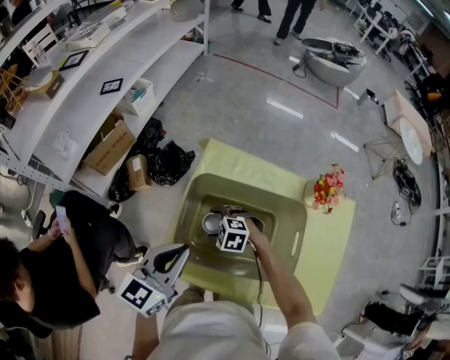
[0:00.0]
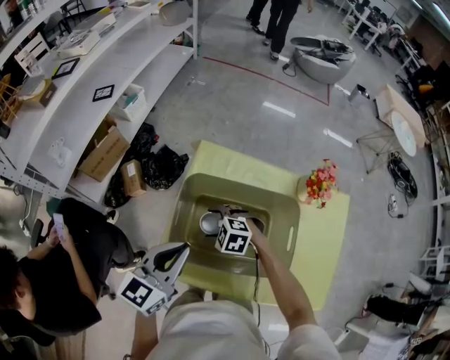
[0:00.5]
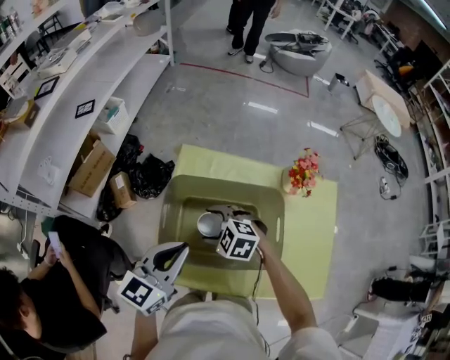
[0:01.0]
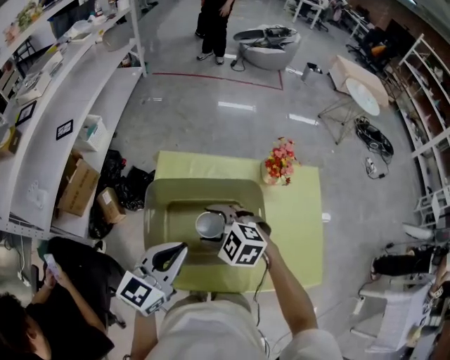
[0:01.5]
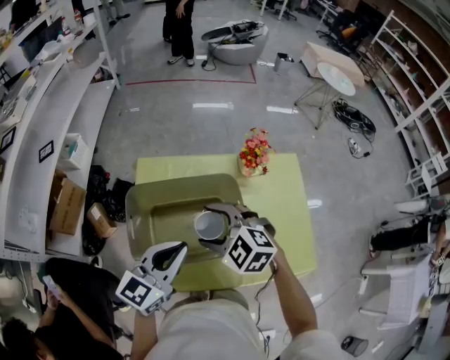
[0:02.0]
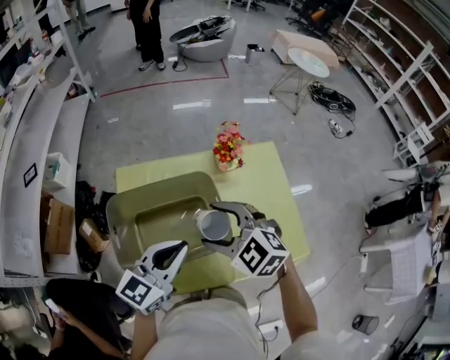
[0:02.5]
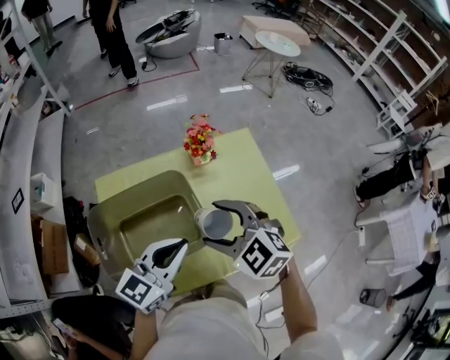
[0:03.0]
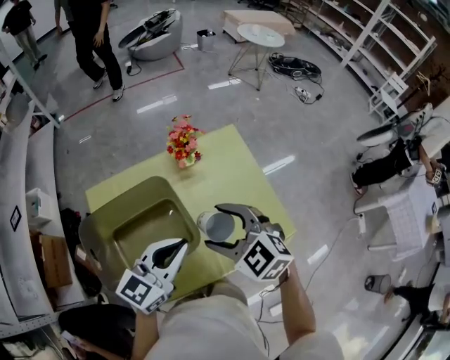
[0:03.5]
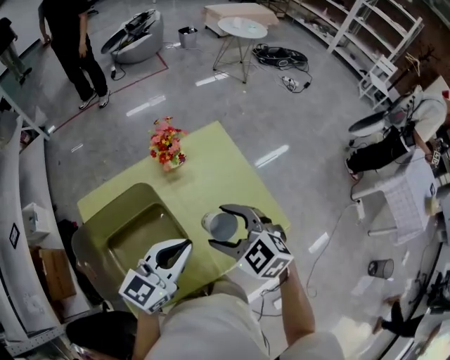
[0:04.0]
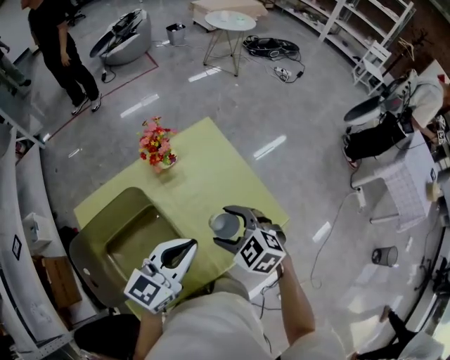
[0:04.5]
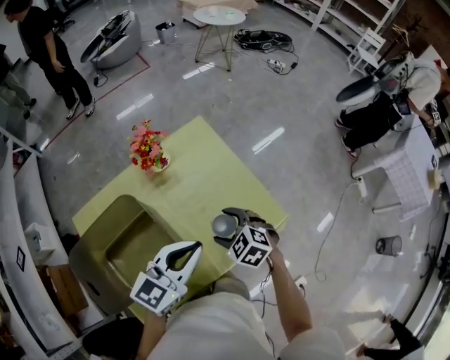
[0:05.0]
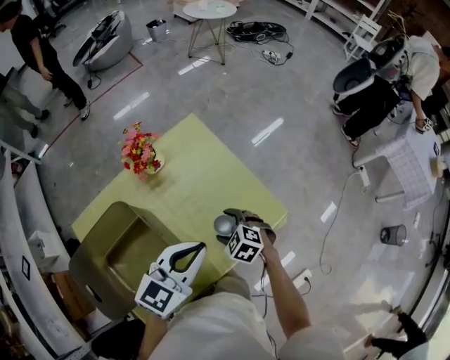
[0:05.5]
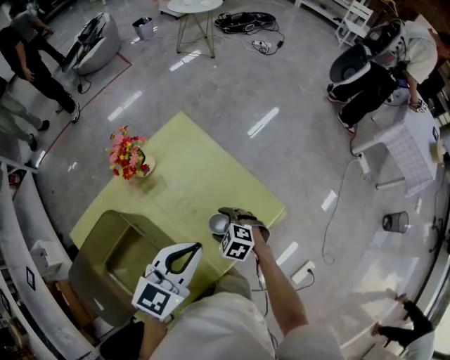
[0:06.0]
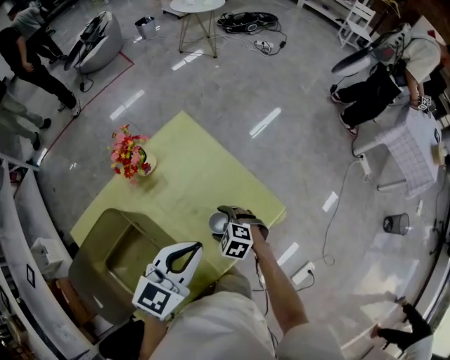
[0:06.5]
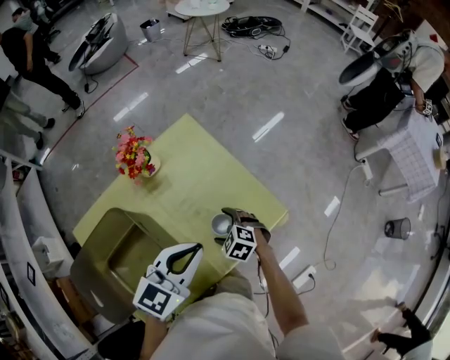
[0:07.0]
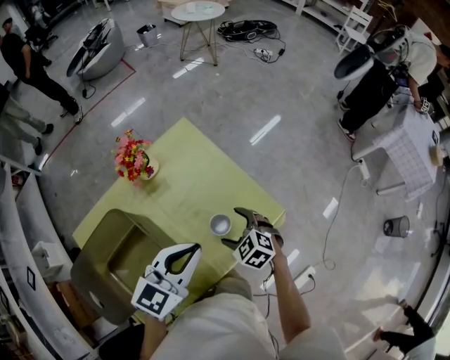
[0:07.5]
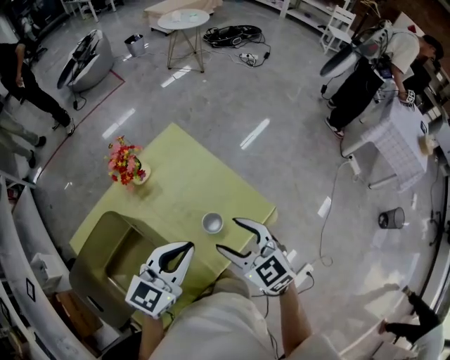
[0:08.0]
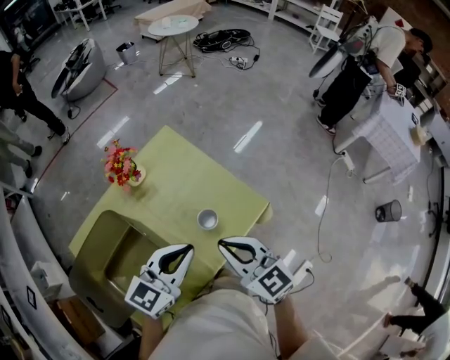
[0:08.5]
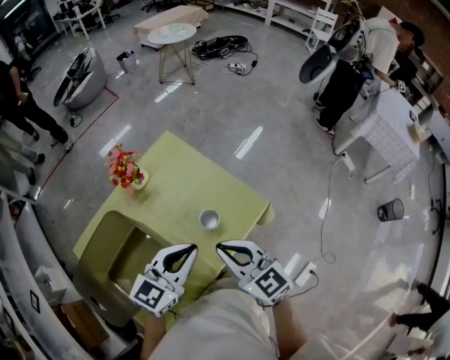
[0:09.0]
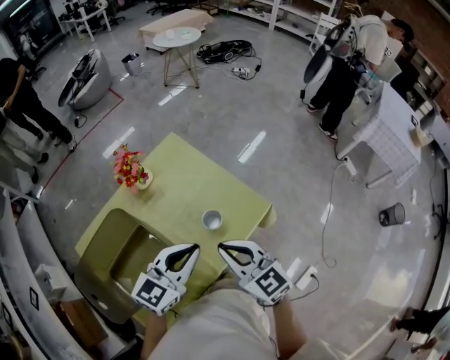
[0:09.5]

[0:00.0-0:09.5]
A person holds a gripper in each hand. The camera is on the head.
0:00.0 to 0:02.0: The left gripper changes place by approximately 15 cm, and changes its angle by about 30 degrees. Meanwhile the right gripper is displaced upward by some 25 cm, and turns by roughly 40 degrees.
0:02.0 to 0:04.0: The left gripper changes place by about 20 cm, and changes its angle by some 30 degrees; the right gripper moves about 25 cm, and swivels approximately 40 degrees.
0:04.0 to 0:05.5: The left gripper moves to the right, some 10 cm; the right gripper shifts roughly 20 cm downward, and turns by about 20 degrees.
0:05.5 to 0:07.5: The grippers move only a little.
0:07.5 to 0:09.5: The left gripper is displaced backward by approximately 5 cm, while the right gripper moves upward and backward, approximately 20 cm, tips its fingers upward by some 30 degrees, and closes up.

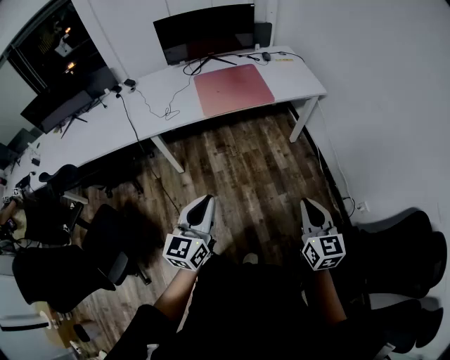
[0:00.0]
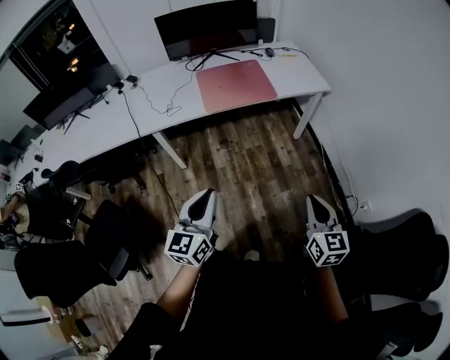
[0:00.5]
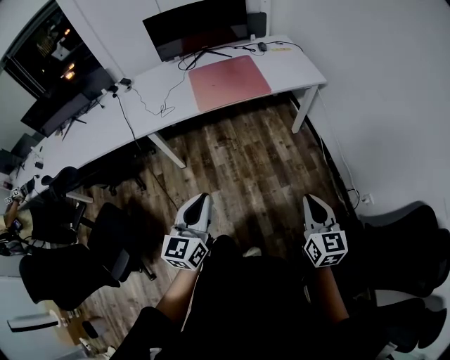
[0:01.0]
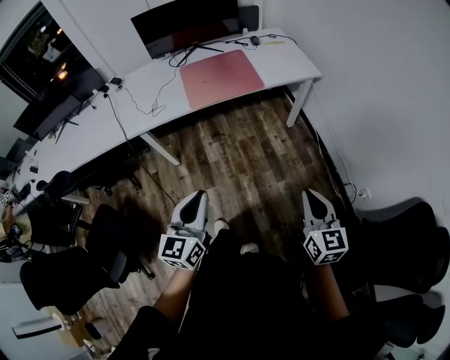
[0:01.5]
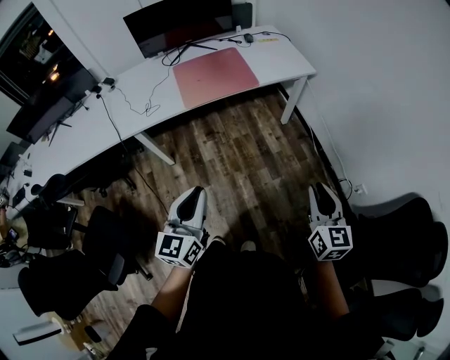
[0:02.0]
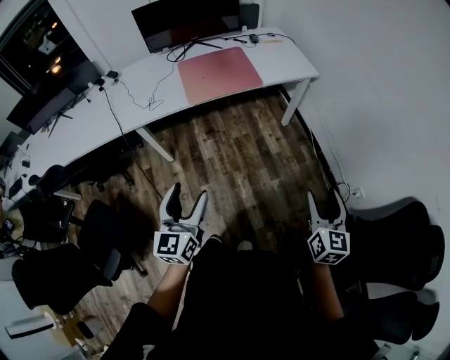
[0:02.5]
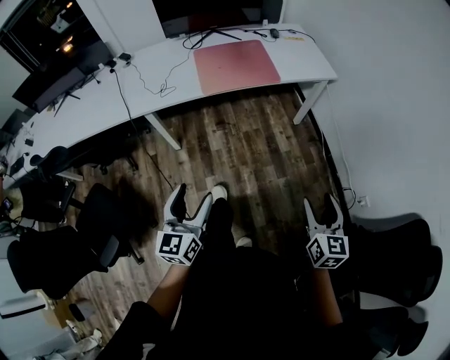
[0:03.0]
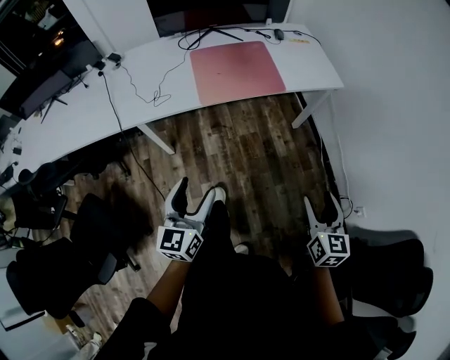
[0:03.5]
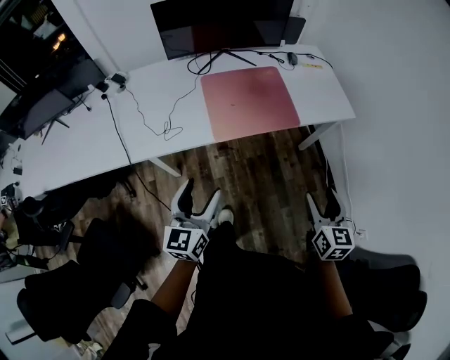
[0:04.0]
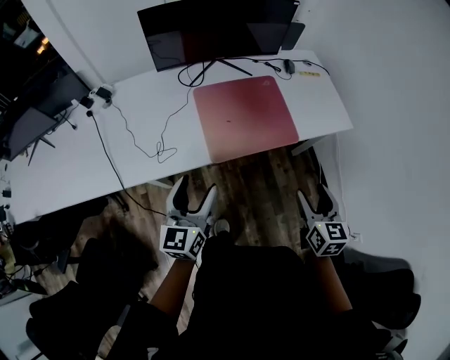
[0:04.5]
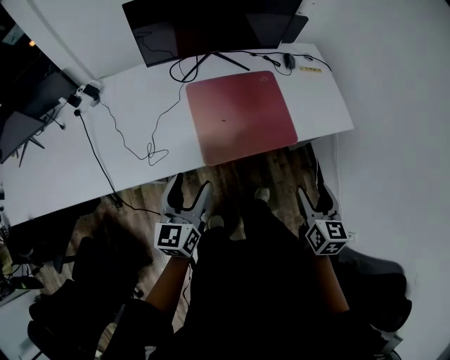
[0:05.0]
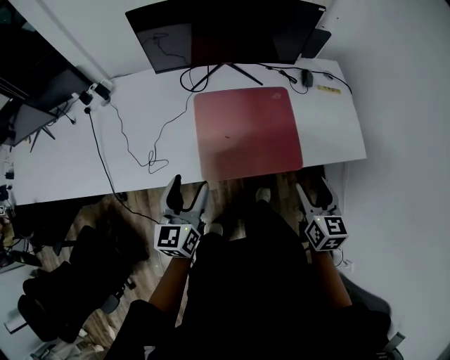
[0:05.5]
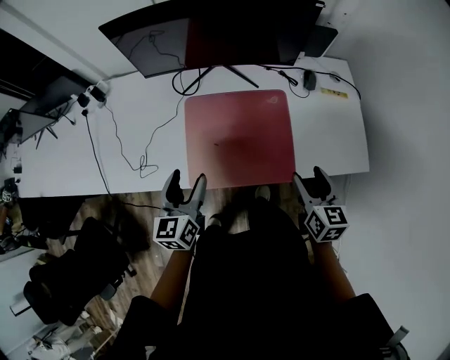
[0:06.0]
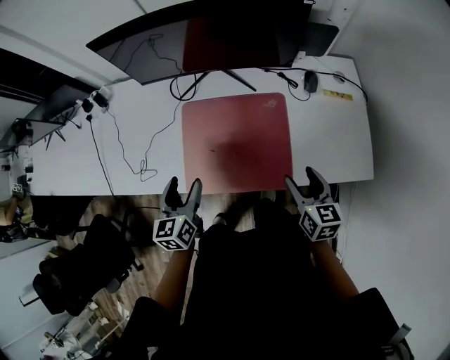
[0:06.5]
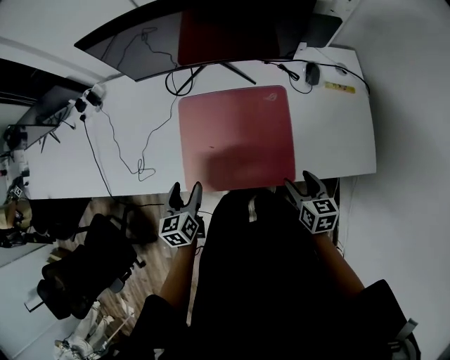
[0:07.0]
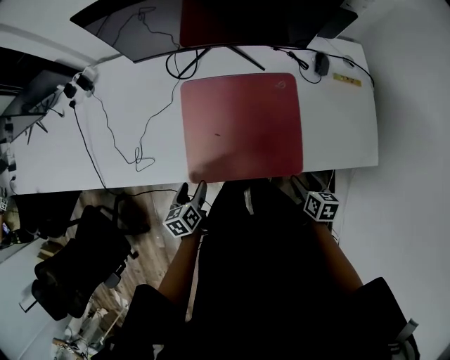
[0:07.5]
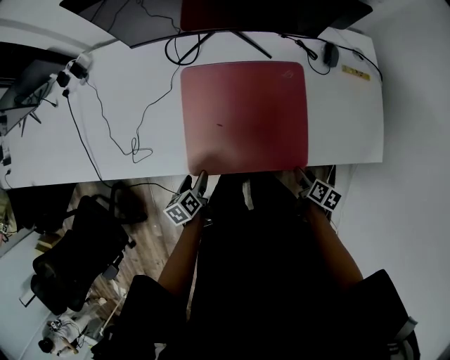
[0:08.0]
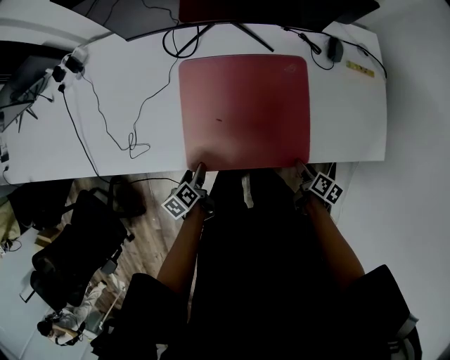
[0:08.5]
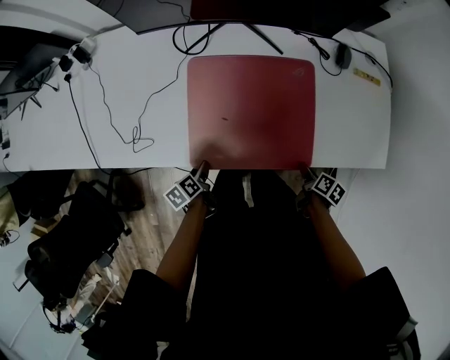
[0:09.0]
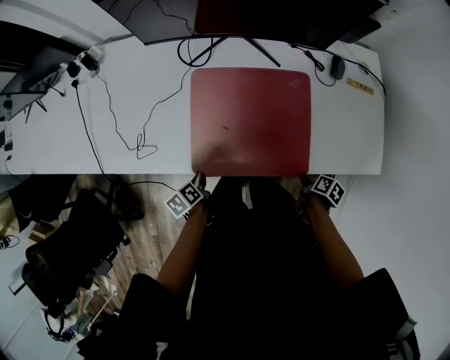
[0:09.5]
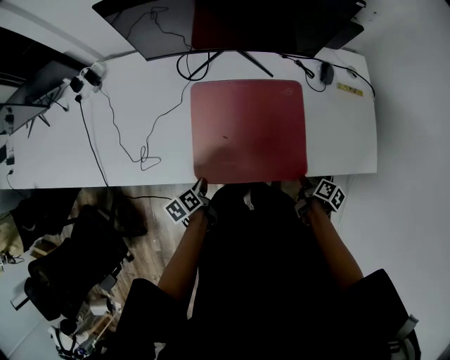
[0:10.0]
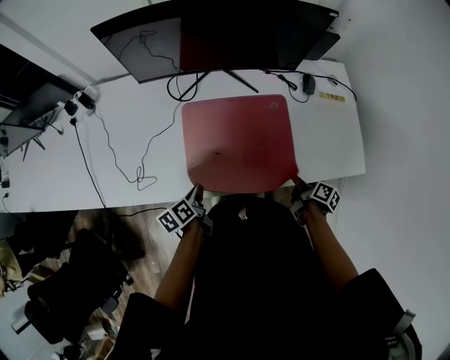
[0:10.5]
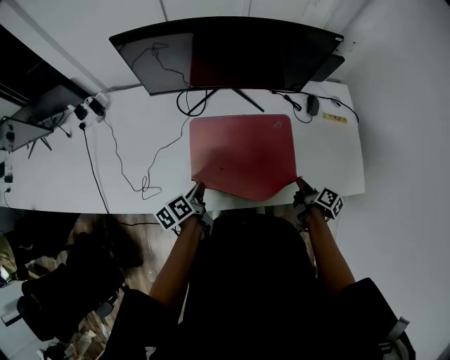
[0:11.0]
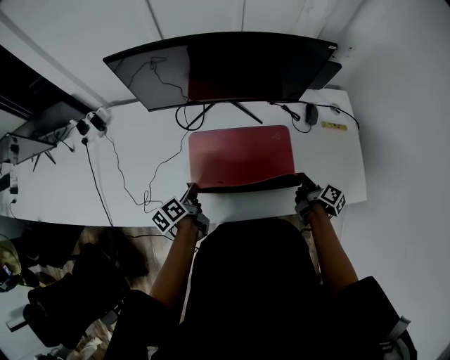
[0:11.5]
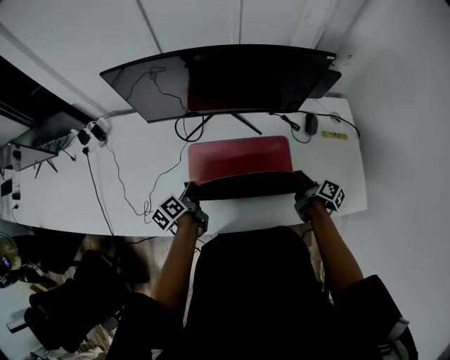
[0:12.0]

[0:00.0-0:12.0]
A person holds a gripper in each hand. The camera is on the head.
0:00.0 to 0:02.0: The right gripper is displaced to the right by roughly 10 cm. Meanwhile the left gripper shifts by some 5 cm.
0:02.0 to 0:04.0: Both grippers travel together forward and to the left, about 35 cm. The right gripper opens its fingers, while the left gripper opens.
0:04.0 to 0:06.0: Both grippers travel together forward, roughly 35 cm. The left gripper turns by roughly 20 degrees.
0:06.0 to 0:08.0: Both grippers travel together downward, about 25 cm. The right gripper turns by roughly 50 degrees. The left gripper tips its fingers downward by some 30 degrees.
0:08.0 to 0:10.0: The right gripper closes its fingers. Meanwhile the left gripper closes.
0:10.0 to 0:12.0: The grippers both shift forward and upward by about 20 cm. The right gripper changes its angle by roughly 20 degrees.

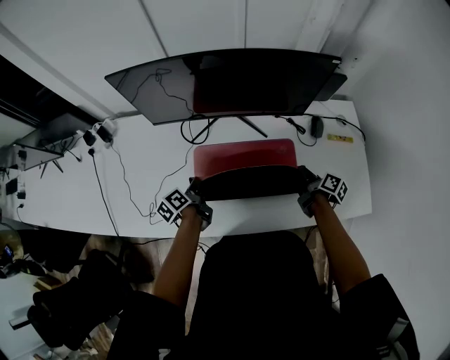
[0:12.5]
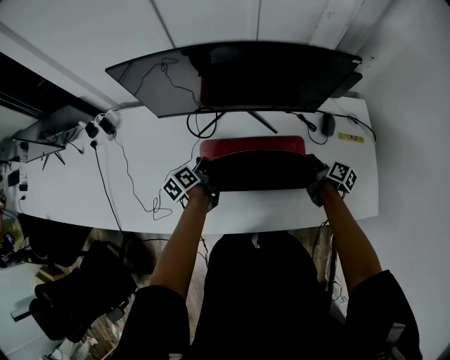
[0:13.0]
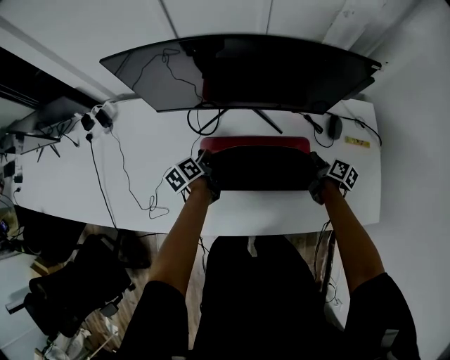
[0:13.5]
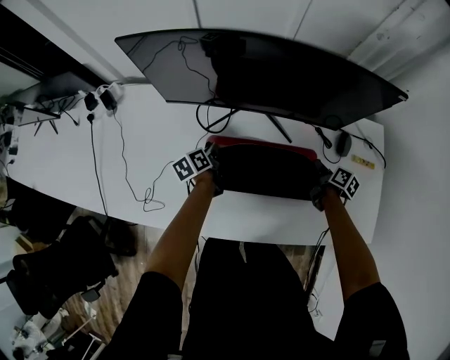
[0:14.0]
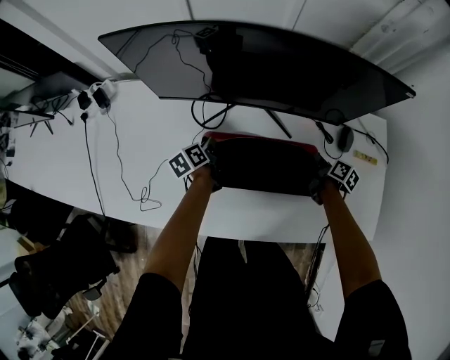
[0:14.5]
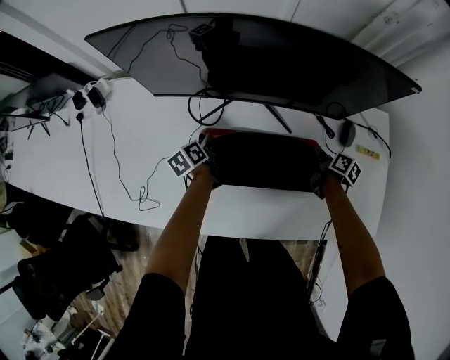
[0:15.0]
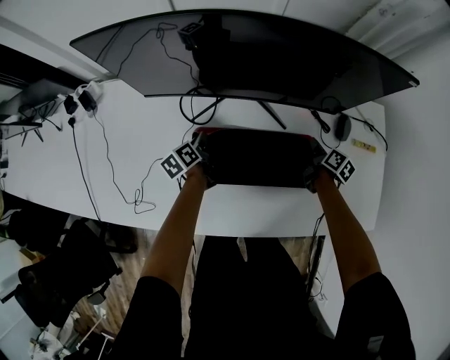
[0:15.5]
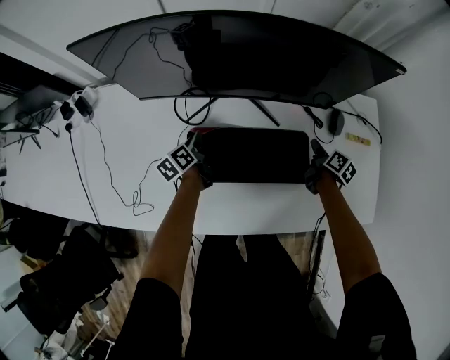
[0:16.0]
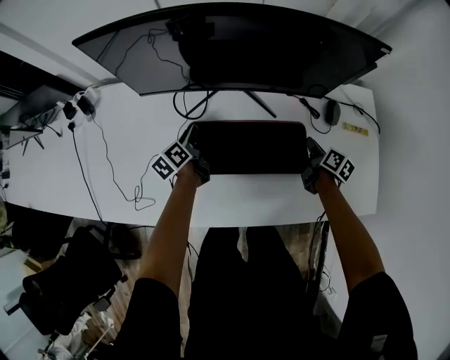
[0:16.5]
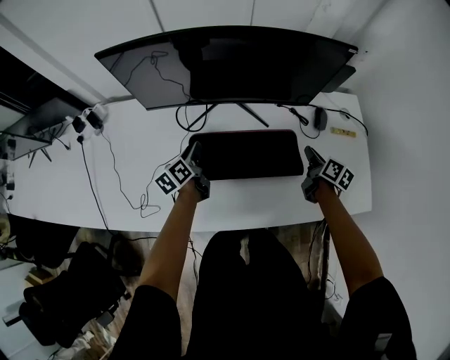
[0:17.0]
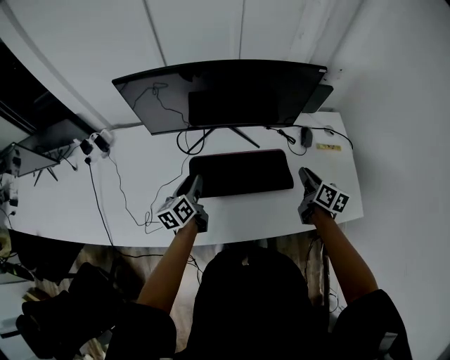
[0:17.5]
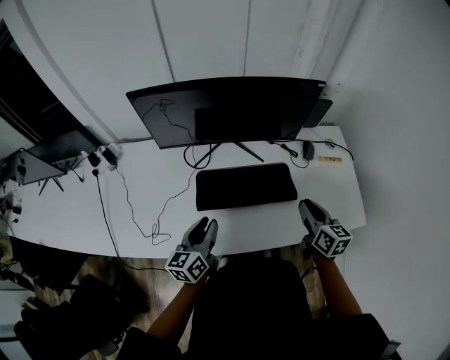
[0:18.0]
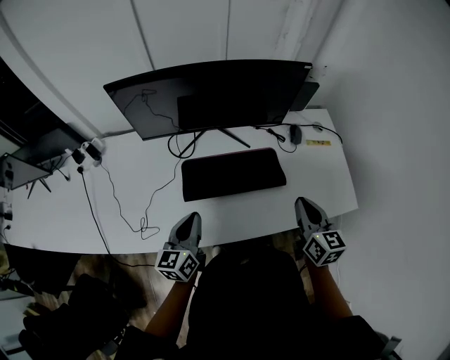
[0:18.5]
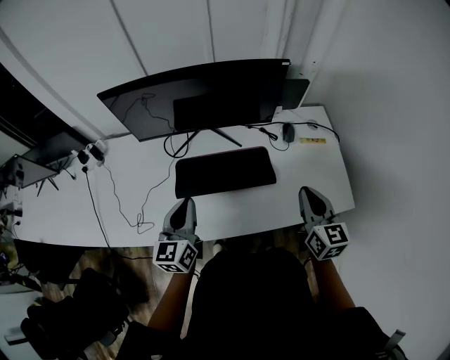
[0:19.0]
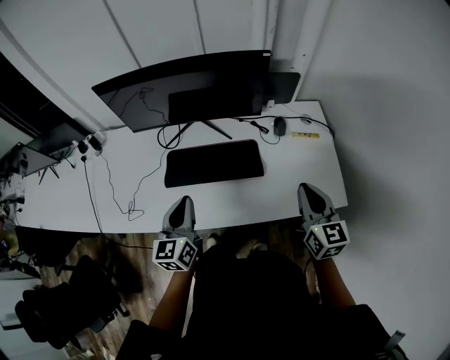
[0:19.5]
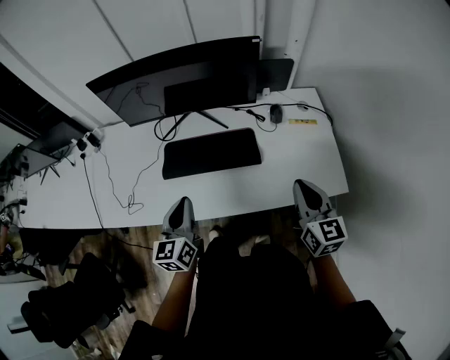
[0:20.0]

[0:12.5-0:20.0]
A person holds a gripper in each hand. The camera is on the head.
0:12.5 to 0:14.5: Both grippers travel together forward and downward, roughly 15 cm.
0:14.5 to 0:16.5: The left gripper opens up.
0:16.5 to 0:18.0: The right gripper goes approximately 30 cm upward and backward, and swivels roughly 30 degrees. Meanwhile the left gripper travels backward and upward by approximately 30 cm, and rotates some 40 degrees.
0:18.0 to 0:20.0: Both grippers move to the right, backward and upward, roughly 15 cm. The left gripper closes its fingers.
